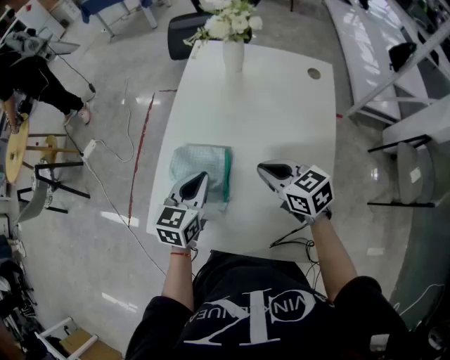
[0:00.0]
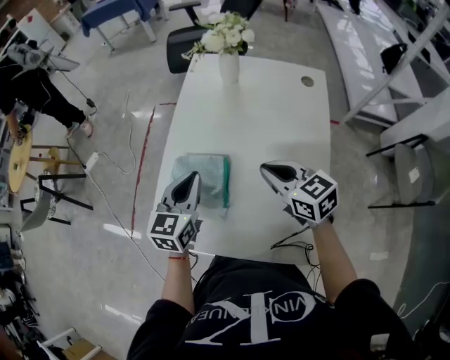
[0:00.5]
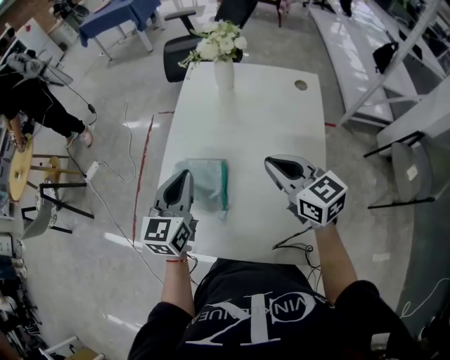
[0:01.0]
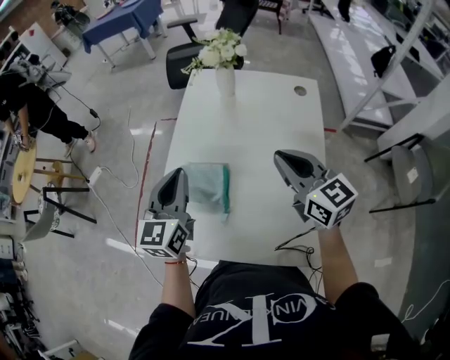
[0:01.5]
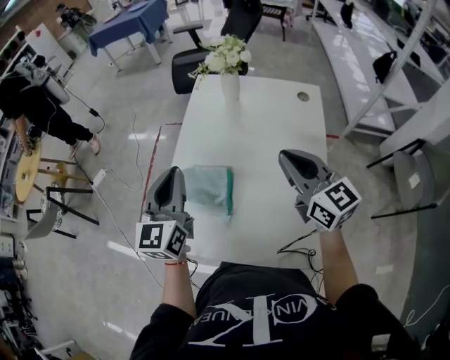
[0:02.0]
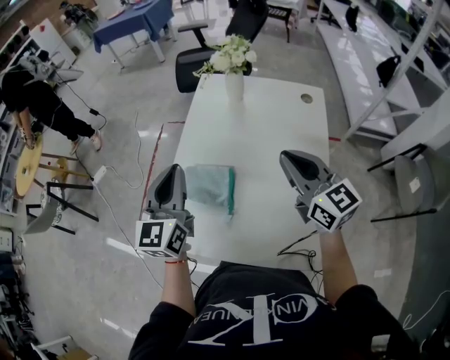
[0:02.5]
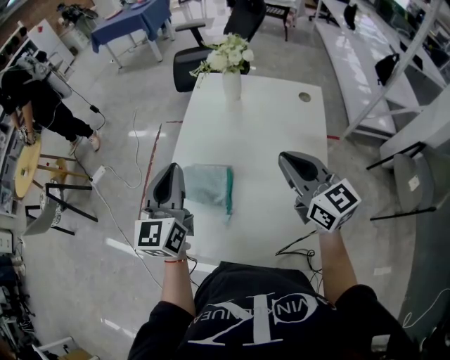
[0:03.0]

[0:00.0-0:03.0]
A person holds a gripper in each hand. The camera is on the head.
0:00.0 to 0:01.5: Both grippers move upward, some 15 cm. The left gripper changes its angle by about 20 degrees. Meanwhile the right gripper changes its angle by roughly 30 degrees.
0:01.5 to 0:03.0: The grippers stay close to where they were, moving slightly.

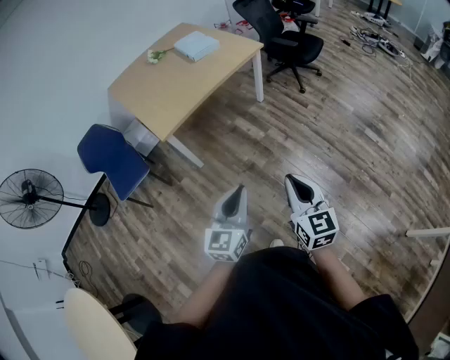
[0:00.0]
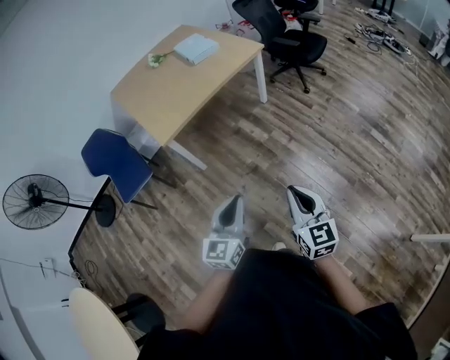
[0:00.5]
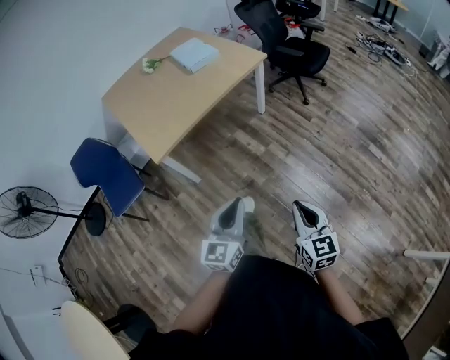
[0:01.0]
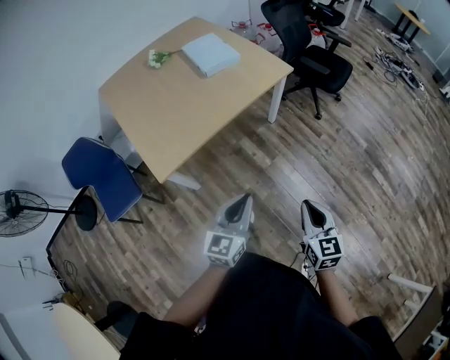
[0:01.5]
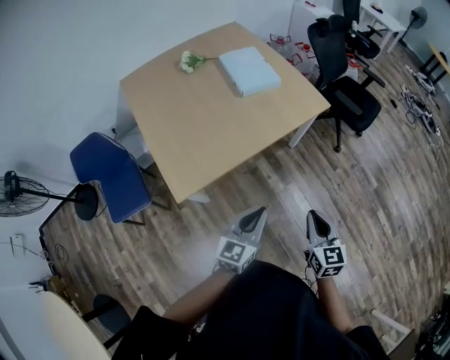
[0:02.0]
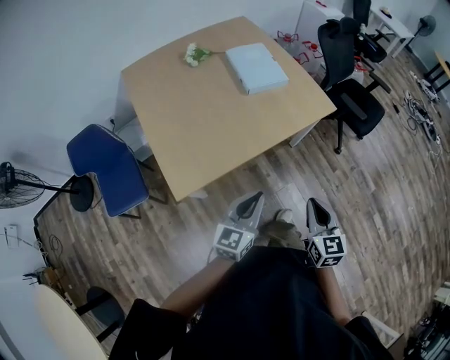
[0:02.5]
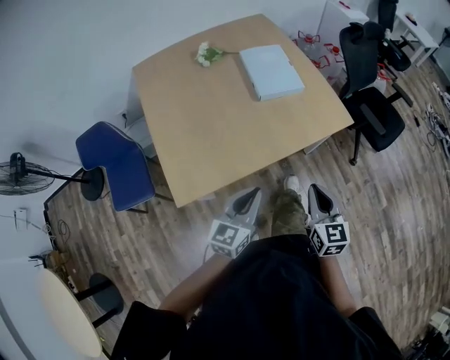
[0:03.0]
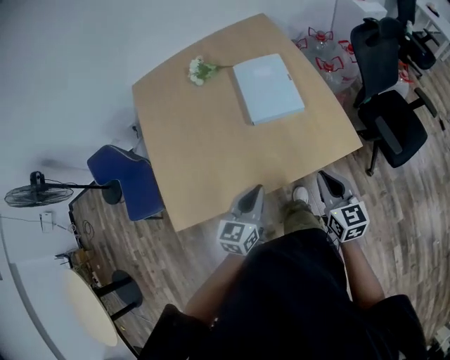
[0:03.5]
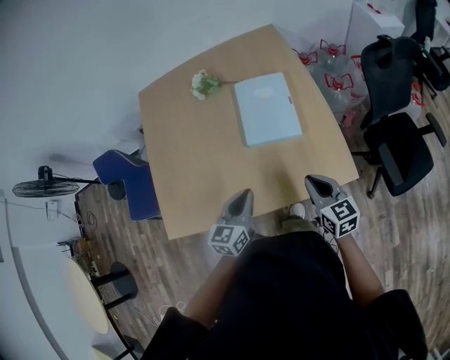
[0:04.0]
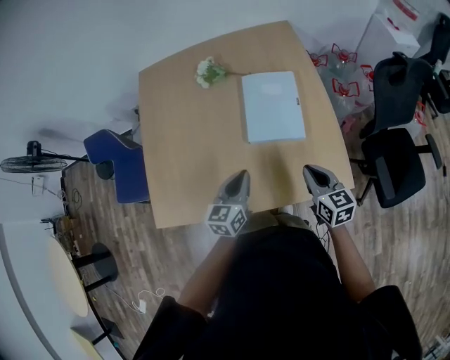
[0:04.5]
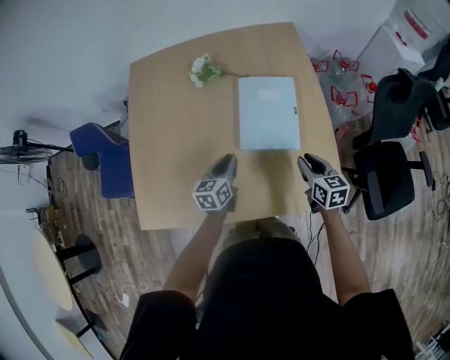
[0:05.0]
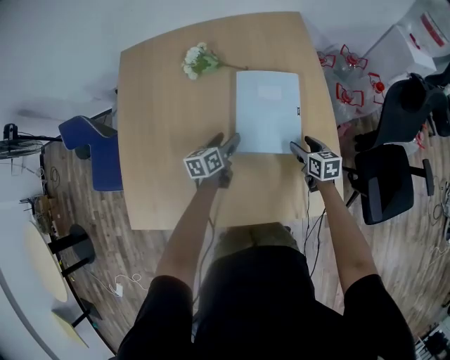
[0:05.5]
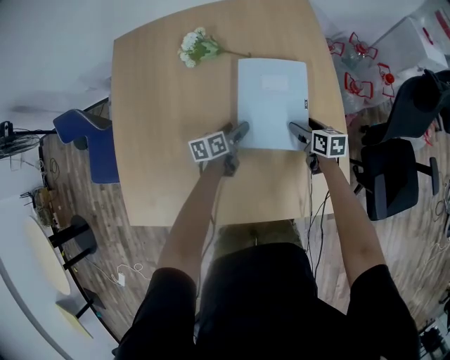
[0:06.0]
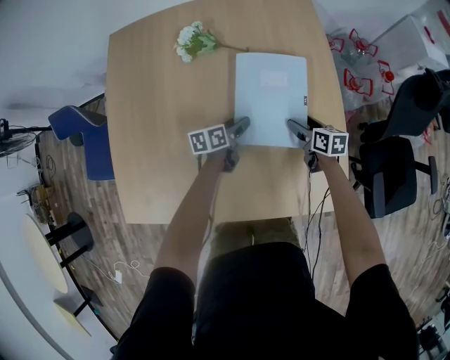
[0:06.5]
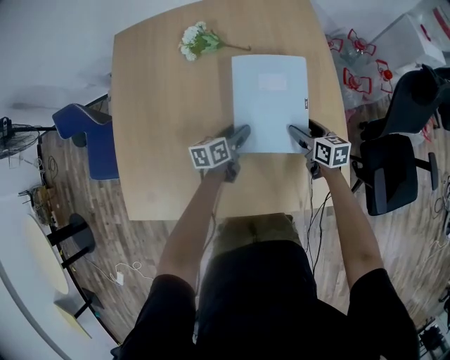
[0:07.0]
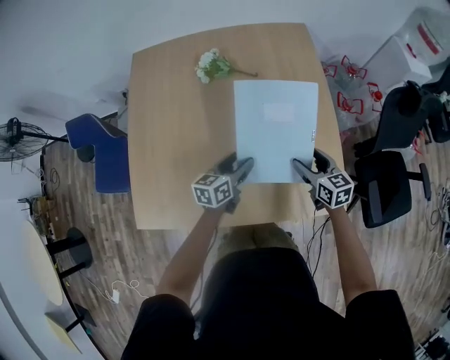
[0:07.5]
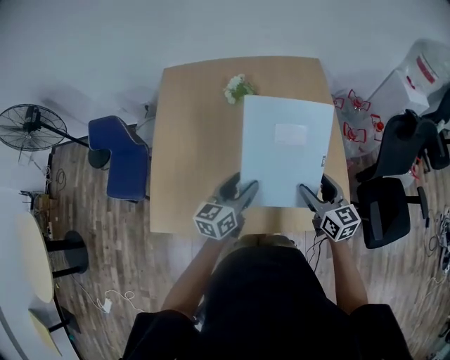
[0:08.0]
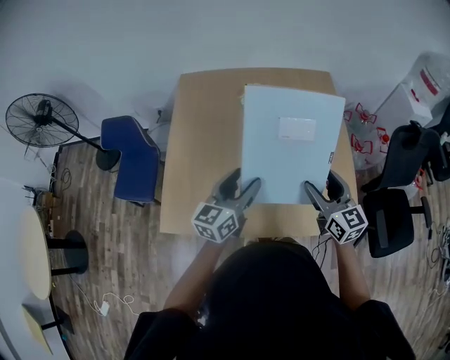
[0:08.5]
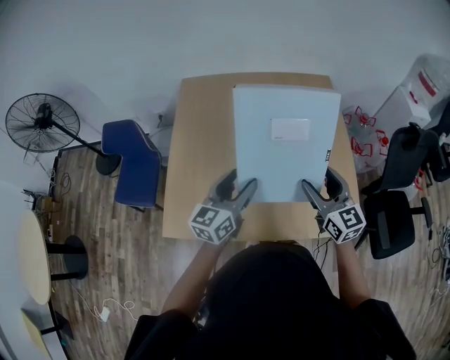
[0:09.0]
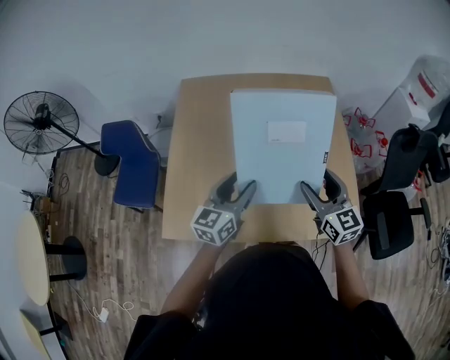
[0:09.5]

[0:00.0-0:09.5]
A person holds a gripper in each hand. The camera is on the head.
0:00.0 to 0:02.0: Both grippers are carried forward, approximately 50 cm.
0:02.0 to 0:04.0: The two grippers travel together, some 50 cm. The left gripper changes its angle by roughly 30 degrees. The right gripper turns by about 40 degrees.
0:04.0 to 0:05.5: Both grippers travel together forward and downward, about 35 cm. The right gripper rotates approximately 20 degrees, and opens up. Meanwhile the left gripper rotates some 30 degrees, and opens.
0:05.5 to 0:07.5: The left gripper heads backward and upward, covering approximately 15 cm; the right gripper shifts some 15 cm upward, backward and to the left.
0:07.5 to 0:09.5: Both grippers travel together upward, to the left and backward, about 30 cm. The left gripper turns by about 30 degrees. The right gripper swivels roughly 30 degrees.

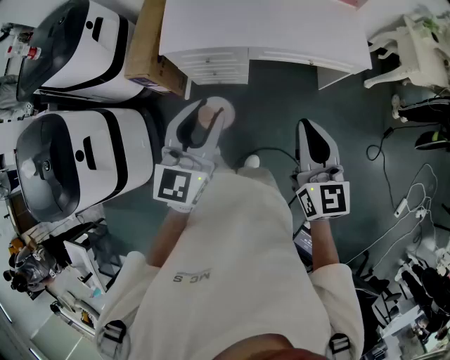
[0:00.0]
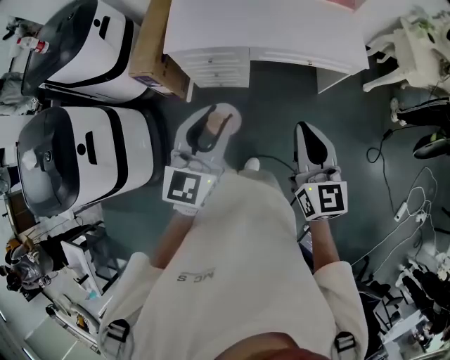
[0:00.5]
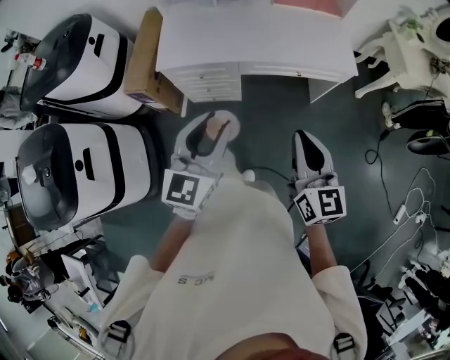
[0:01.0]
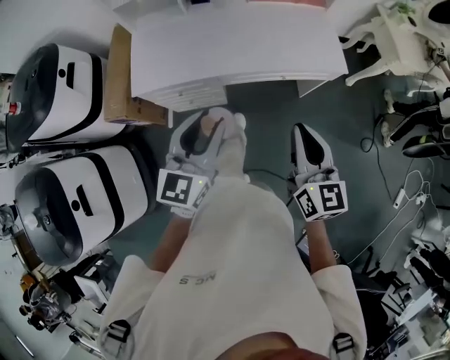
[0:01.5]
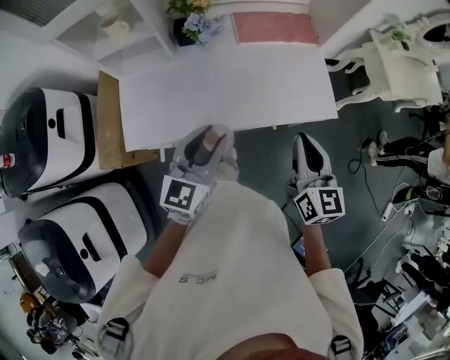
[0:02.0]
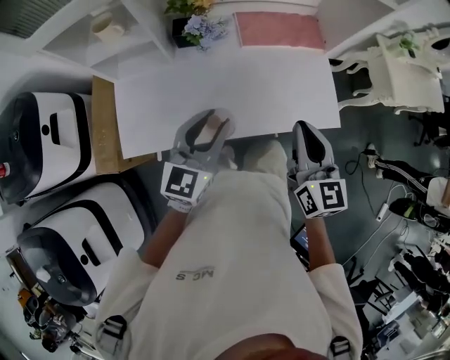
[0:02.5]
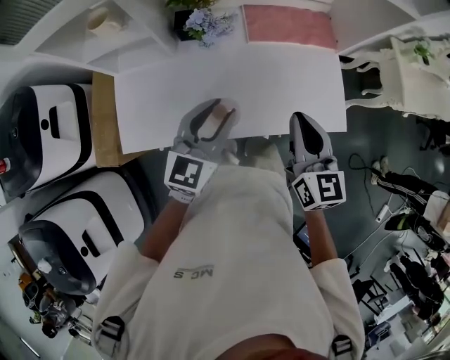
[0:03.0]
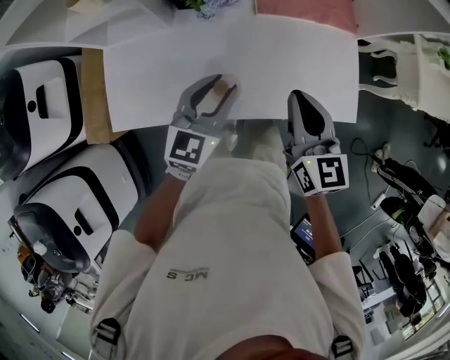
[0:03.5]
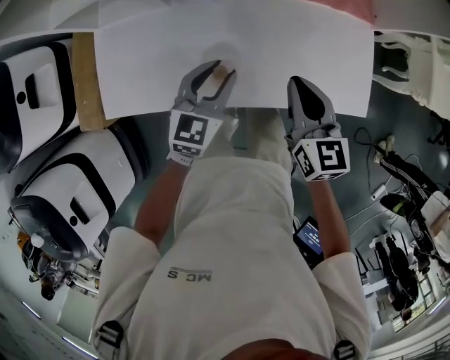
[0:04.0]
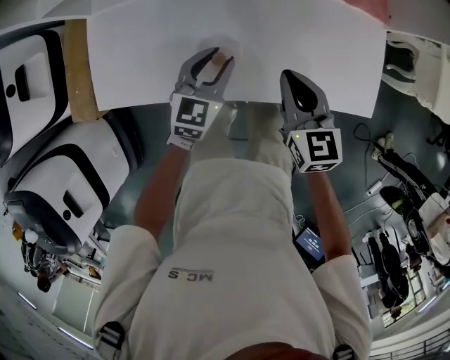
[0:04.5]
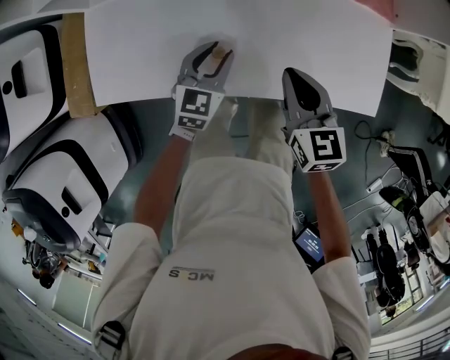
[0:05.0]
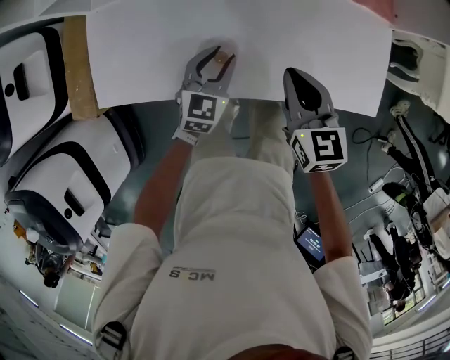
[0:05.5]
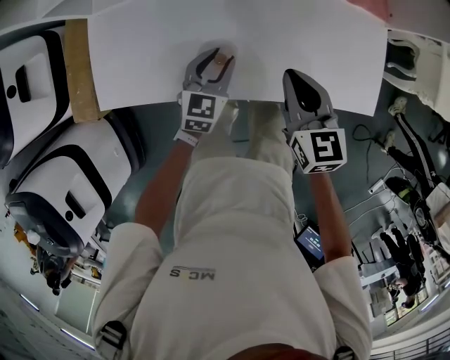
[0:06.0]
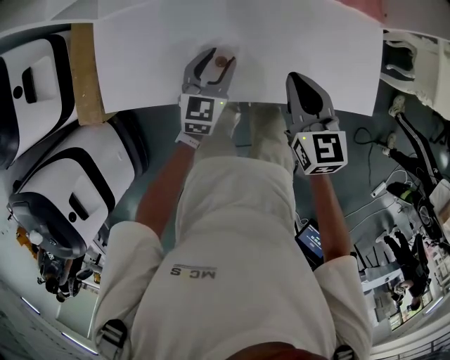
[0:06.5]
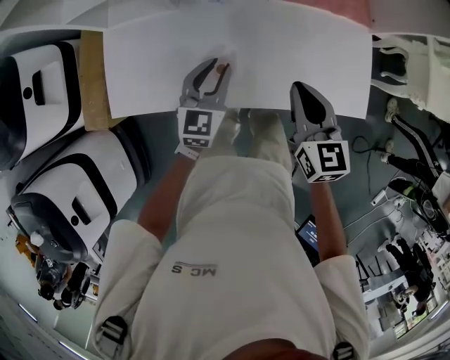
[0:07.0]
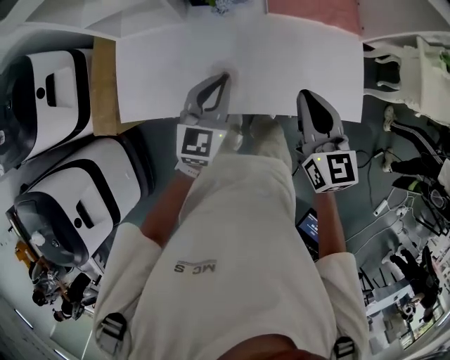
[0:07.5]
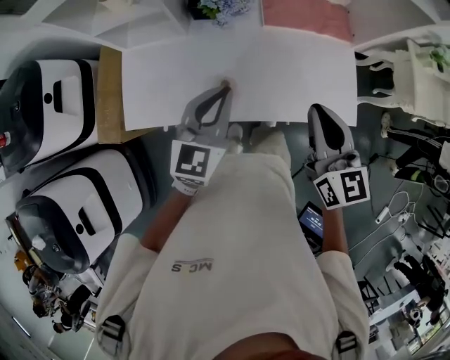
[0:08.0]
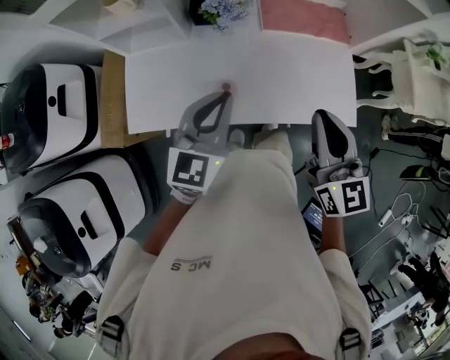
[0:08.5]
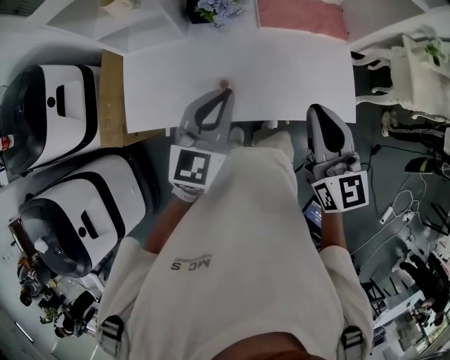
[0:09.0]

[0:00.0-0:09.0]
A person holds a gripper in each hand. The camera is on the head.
0:00.0 to 0:02.0: Both grippers move forward, roughly 35 cm.
0:02.0 to 0:04.5: The left gripper is displaced downward and forward by some 35 cm. The right gripper heads downward, forward and to the left, covering some 30 cm, and rotates about 30 degrees.
0:04.5 to 0:07.0: Both grippers move upward, approximately 5 cm.
0:07.0 to 0:09.0: Both grippers travel together upward and backward, about 20 cm. The left gripper closes its fingers.

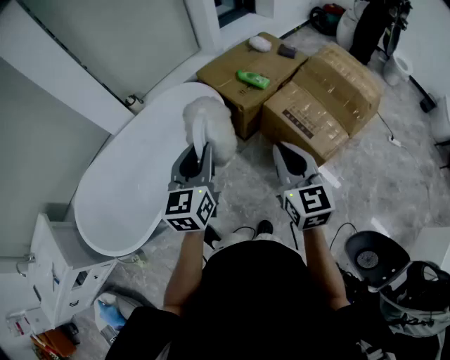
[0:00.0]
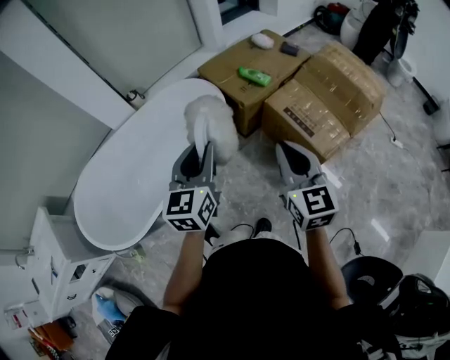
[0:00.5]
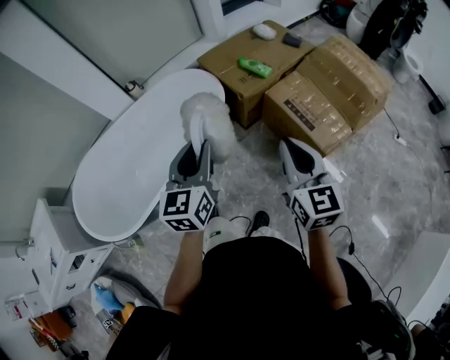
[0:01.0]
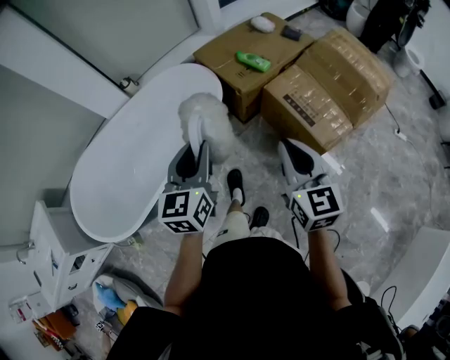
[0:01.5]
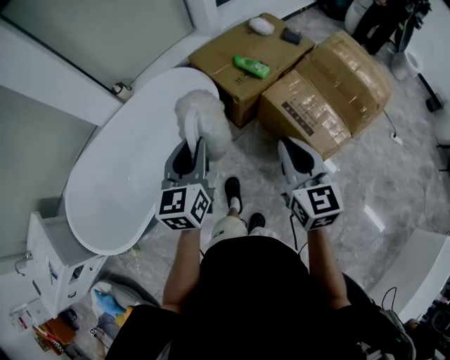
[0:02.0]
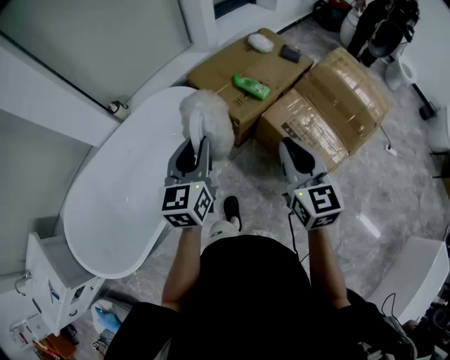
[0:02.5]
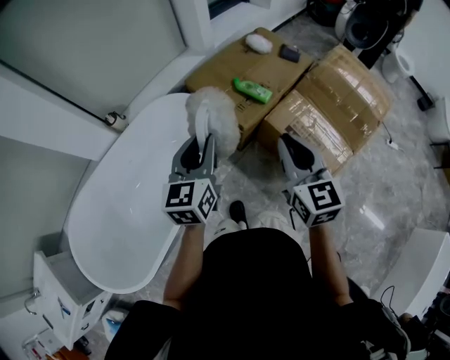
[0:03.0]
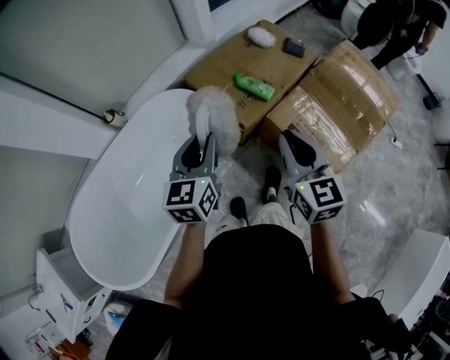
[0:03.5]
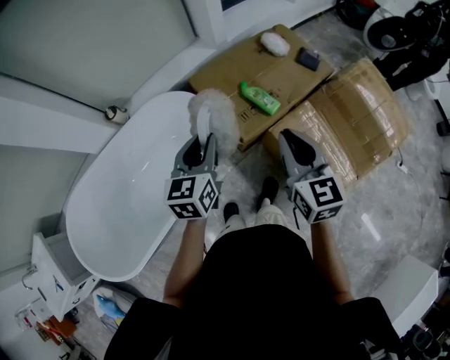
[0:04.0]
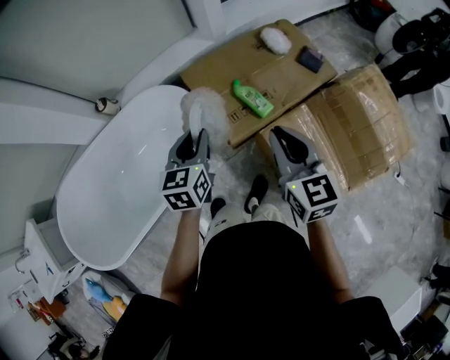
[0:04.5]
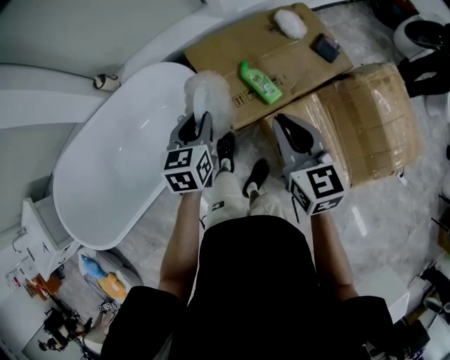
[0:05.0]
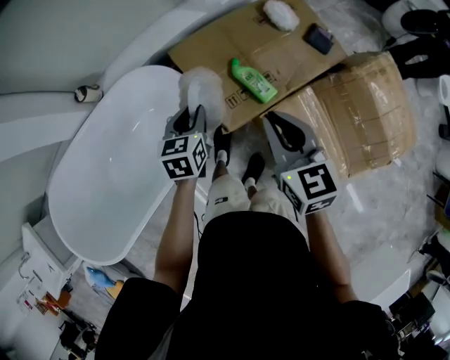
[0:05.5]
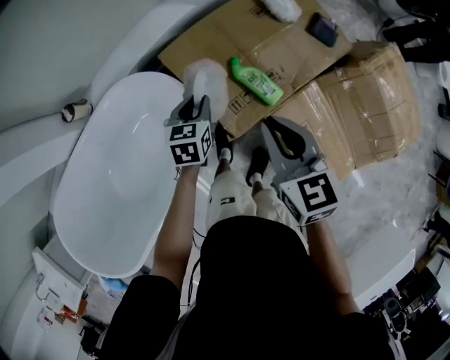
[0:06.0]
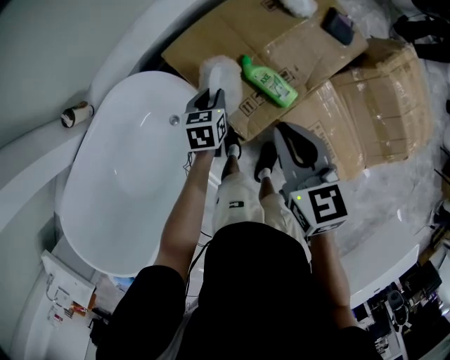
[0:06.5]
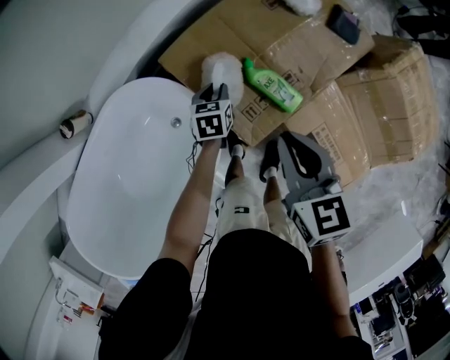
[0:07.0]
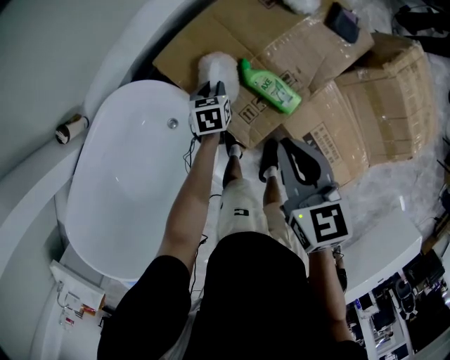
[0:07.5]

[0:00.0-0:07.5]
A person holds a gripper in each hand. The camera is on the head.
0:00.0 to 0:02.0: The grippers both shift forward by some 10 cm.
0:02.0 to 0:04.0: The two grippers go roughly 30 cm forward.
0:04.0 to 0:05.5: The left gripper shifts about 25 cm downward and forward; the right gripper moves forward and downward, approximately 15 cm.
0:05.5 to 0:07.5: The right gripper goes roughly 15 cm downward and forward, and changes its angle by about 20 degrees. The left gripper goes some 30 cm downward and forward, and rotates roughly 20 degrees.
